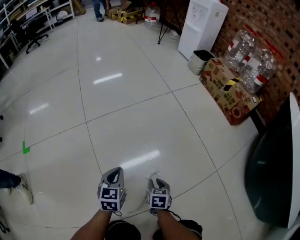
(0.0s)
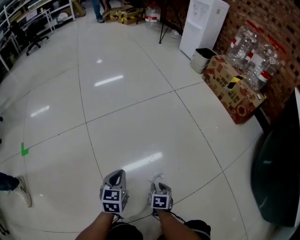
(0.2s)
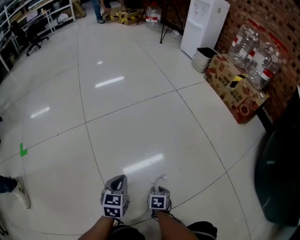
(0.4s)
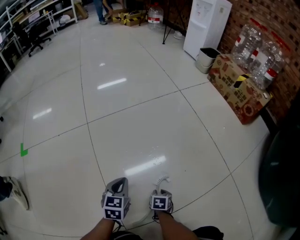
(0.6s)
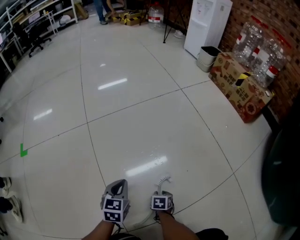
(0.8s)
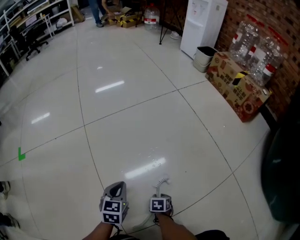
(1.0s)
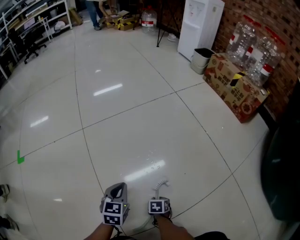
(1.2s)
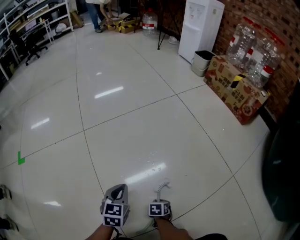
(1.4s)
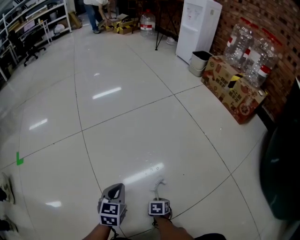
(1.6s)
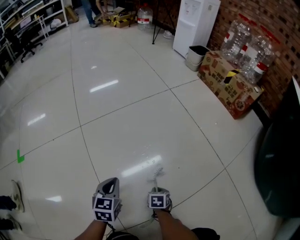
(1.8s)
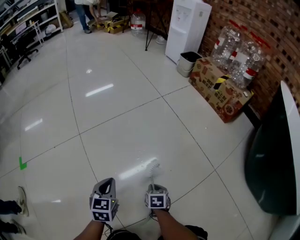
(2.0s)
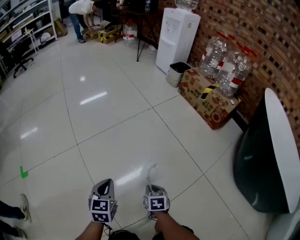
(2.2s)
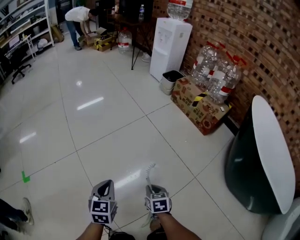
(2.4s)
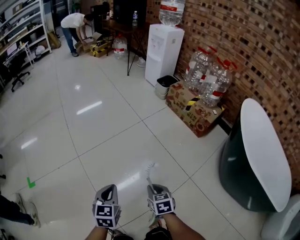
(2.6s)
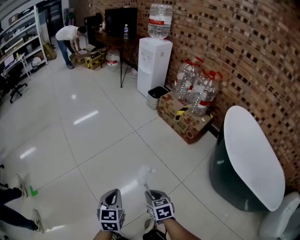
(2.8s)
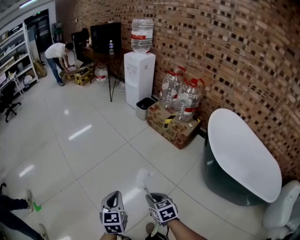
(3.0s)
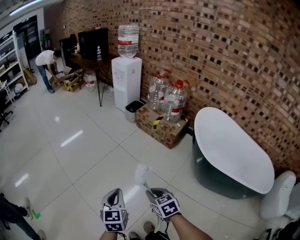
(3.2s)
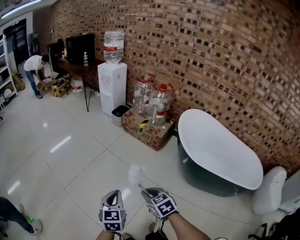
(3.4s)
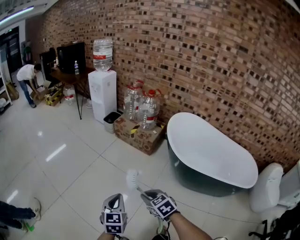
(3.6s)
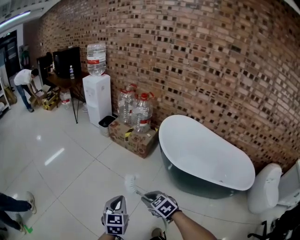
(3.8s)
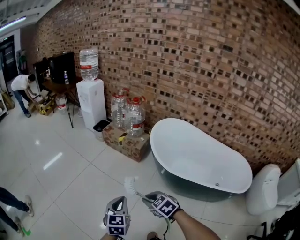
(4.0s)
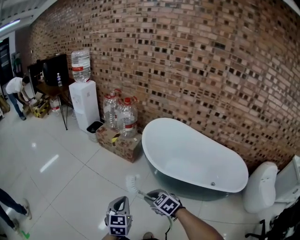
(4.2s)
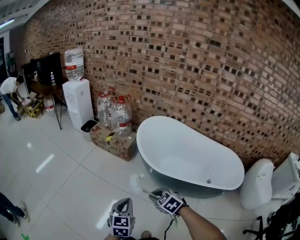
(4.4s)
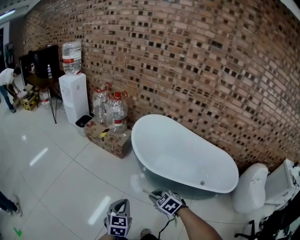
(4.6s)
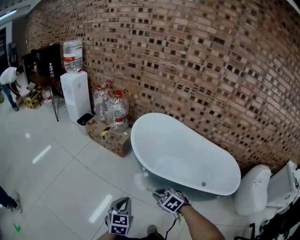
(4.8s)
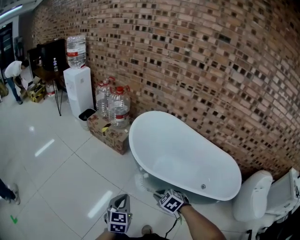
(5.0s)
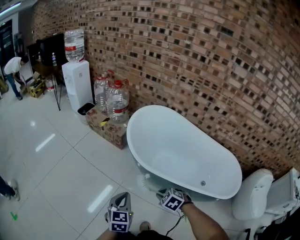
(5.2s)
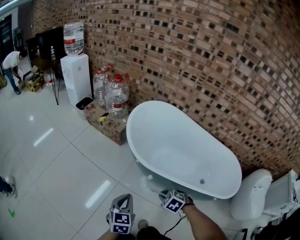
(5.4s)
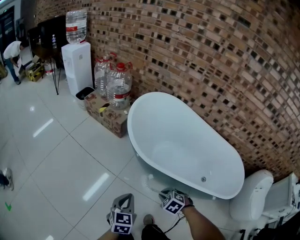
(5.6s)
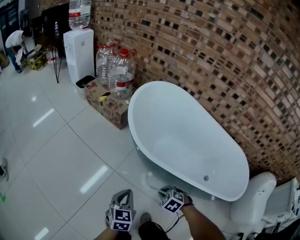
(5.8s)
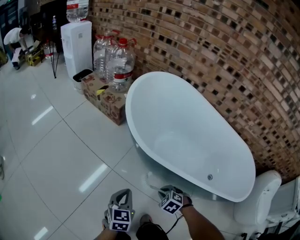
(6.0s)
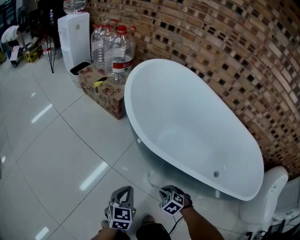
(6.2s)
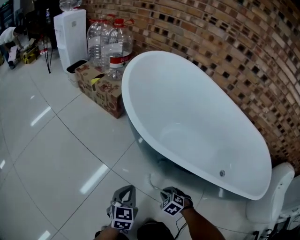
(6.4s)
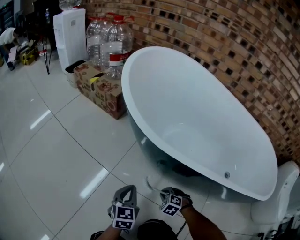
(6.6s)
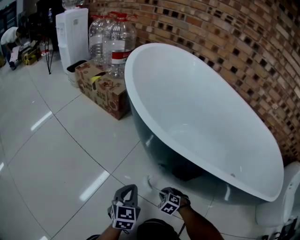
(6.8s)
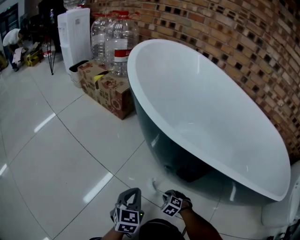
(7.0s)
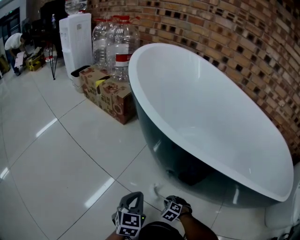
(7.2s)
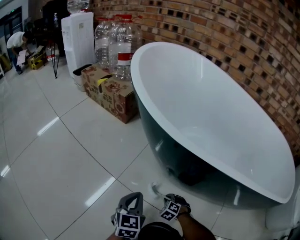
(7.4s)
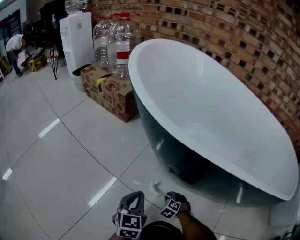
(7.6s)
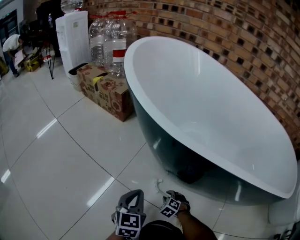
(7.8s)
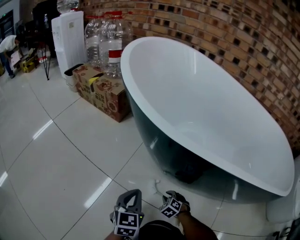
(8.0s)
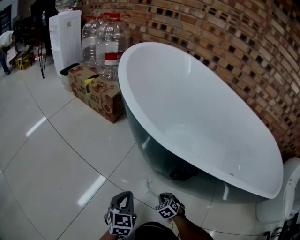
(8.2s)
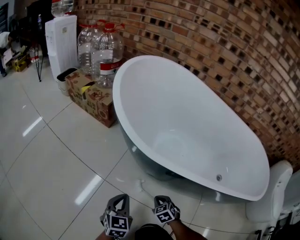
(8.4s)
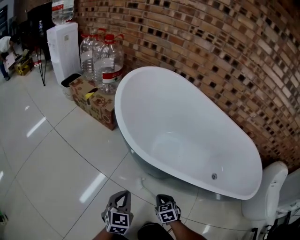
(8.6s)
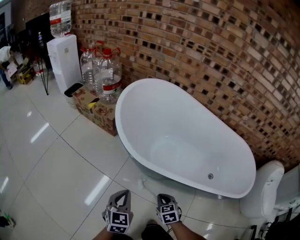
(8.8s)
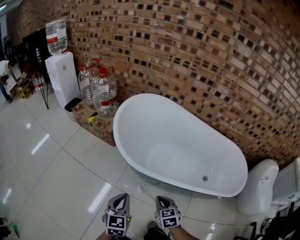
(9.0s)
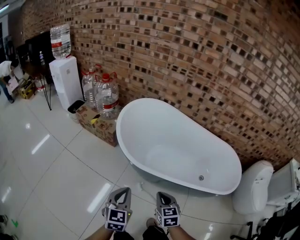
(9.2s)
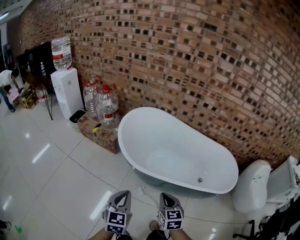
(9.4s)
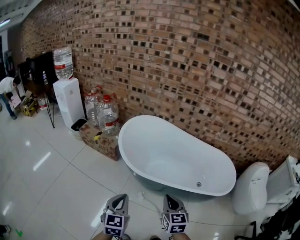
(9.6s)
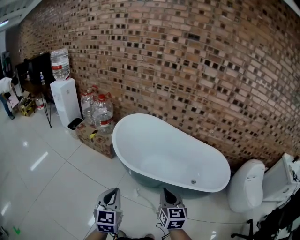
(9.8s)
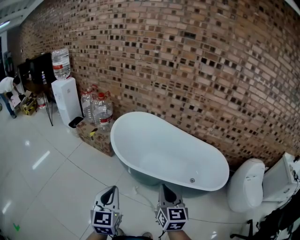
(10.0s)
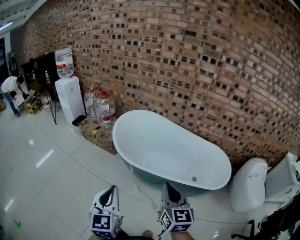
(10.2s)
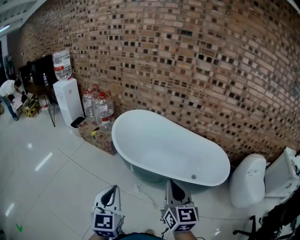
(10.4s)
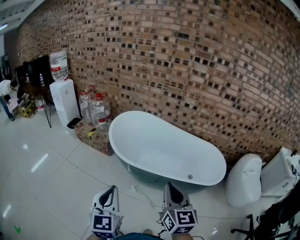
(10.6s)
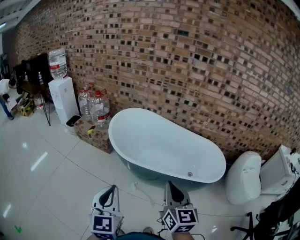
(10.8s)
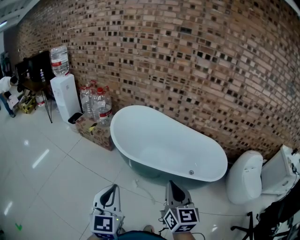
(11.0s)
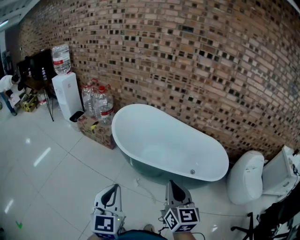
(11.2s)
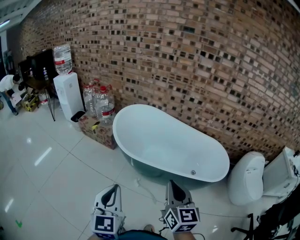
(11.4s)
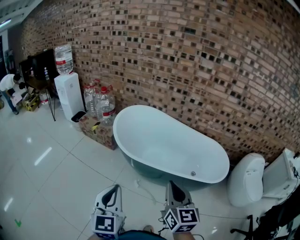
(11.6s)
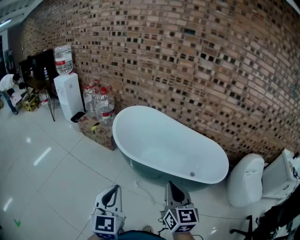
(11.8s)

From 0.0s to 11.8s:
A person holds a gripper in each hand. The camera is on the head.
From 0.0s to 1.4s: The right gripper heads downward, covering about 25 cm. Meanwhile the left gripper is displaced downward by some 15 cm.
From 1.4s to 3.0s: The two grippers go about 70 cm upward. The right gripper tilts its fingers about 30 degrees upward.
From 3.0s to 4.4s: The right gripper moves to the right and upward, approximately 40 cm, while the left gripper heads to the right, covering roughly 40 cm, and turns by about 30 degrees.
From 4.4s to 6.0s: The two grippers go about 40 cm downward and to the right. The right gripper swivels some 20 degrees.
From 6.0s to 7.4s: The grippers both shift downward by roughly 40 cm.
From 7.4s to 8.8s: Both grippers move upward, about 40 cm. The right gripper rolls clockwise, seen from behind, by roughly 50 degrees.
From 8.8s to 10.4s: The right gripper goes about 60 cm upward, and tilts its fingers some 40 degrees upward. The left gripper goes roughly 50 cm upward and backward, and swivels about 20 degrees.
From 10.4s to 11.8s: The grippers move only a little.

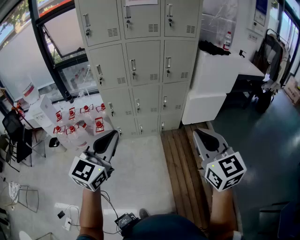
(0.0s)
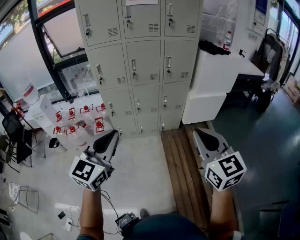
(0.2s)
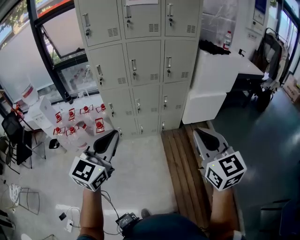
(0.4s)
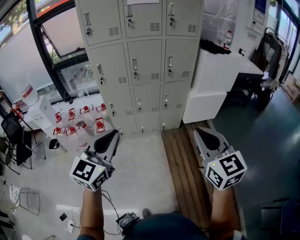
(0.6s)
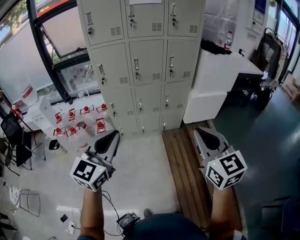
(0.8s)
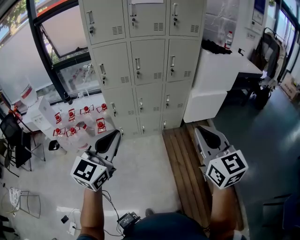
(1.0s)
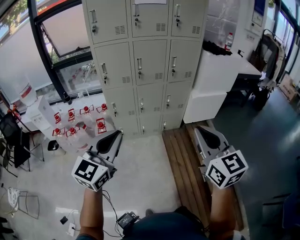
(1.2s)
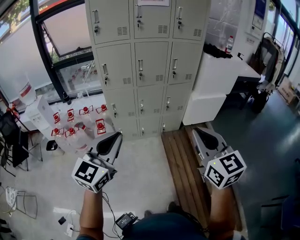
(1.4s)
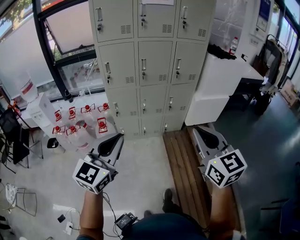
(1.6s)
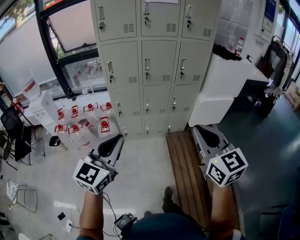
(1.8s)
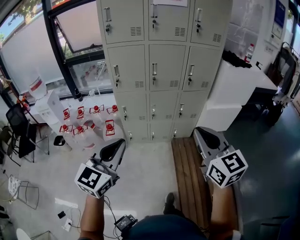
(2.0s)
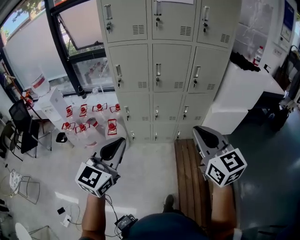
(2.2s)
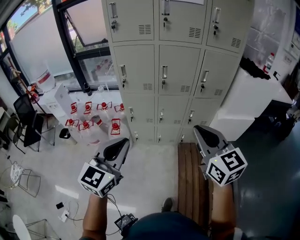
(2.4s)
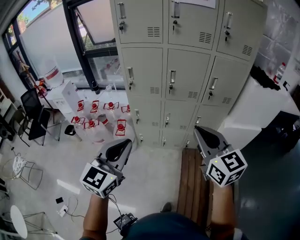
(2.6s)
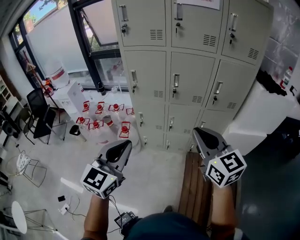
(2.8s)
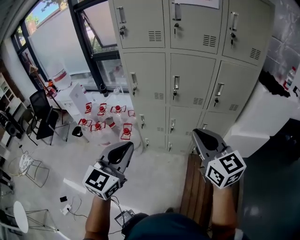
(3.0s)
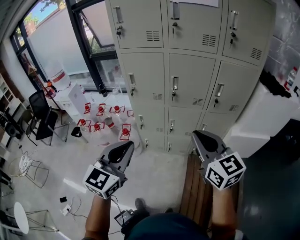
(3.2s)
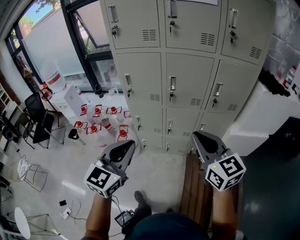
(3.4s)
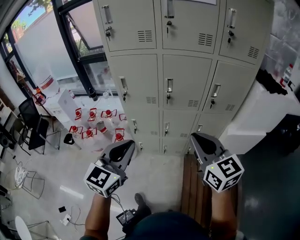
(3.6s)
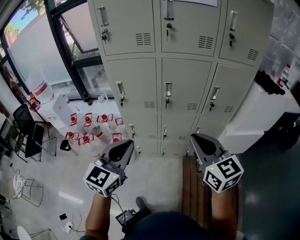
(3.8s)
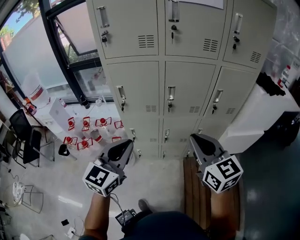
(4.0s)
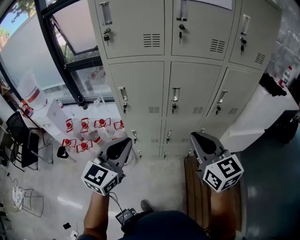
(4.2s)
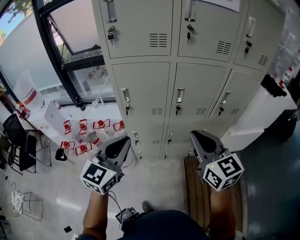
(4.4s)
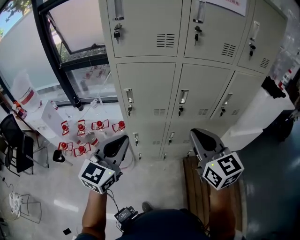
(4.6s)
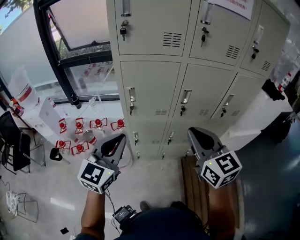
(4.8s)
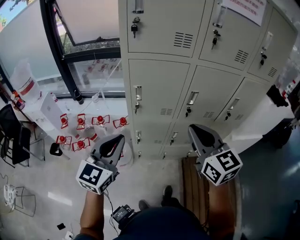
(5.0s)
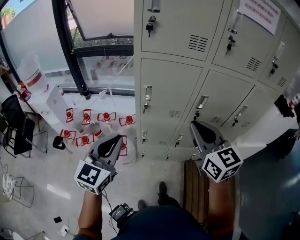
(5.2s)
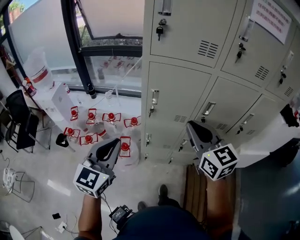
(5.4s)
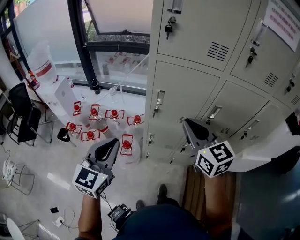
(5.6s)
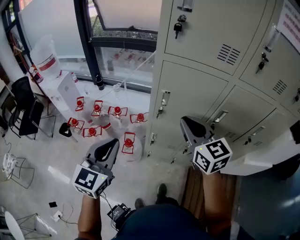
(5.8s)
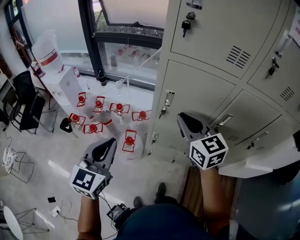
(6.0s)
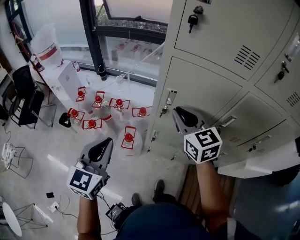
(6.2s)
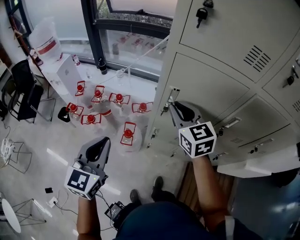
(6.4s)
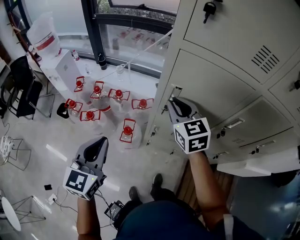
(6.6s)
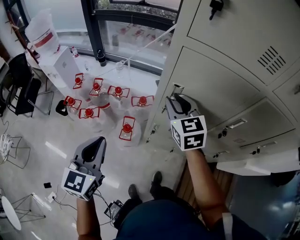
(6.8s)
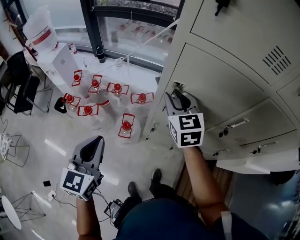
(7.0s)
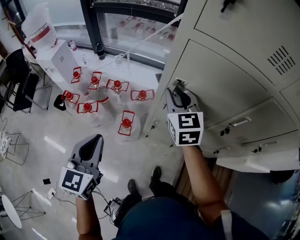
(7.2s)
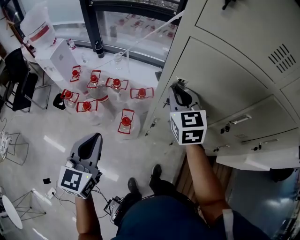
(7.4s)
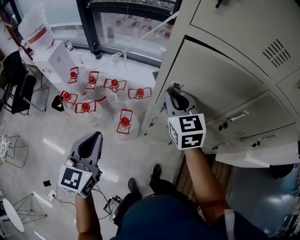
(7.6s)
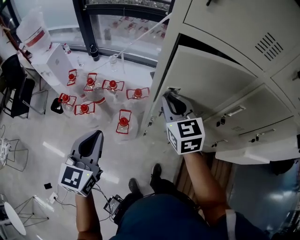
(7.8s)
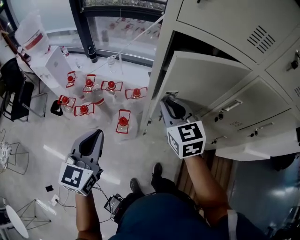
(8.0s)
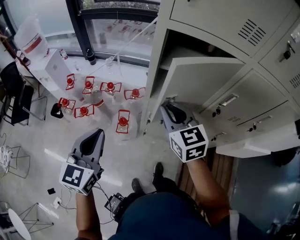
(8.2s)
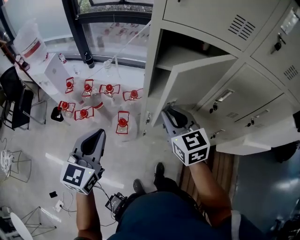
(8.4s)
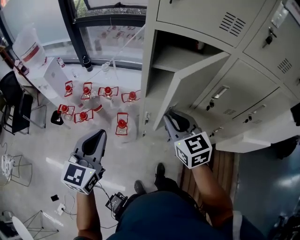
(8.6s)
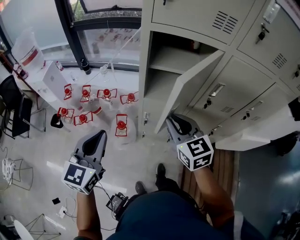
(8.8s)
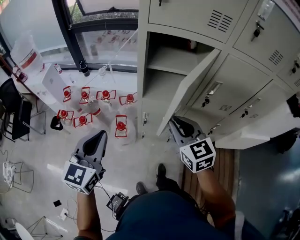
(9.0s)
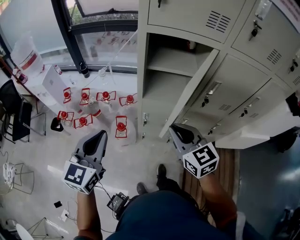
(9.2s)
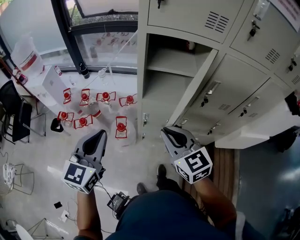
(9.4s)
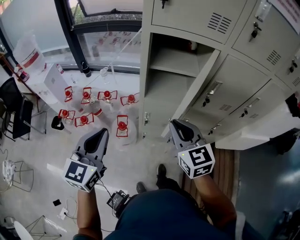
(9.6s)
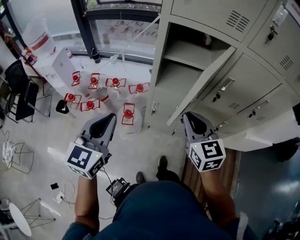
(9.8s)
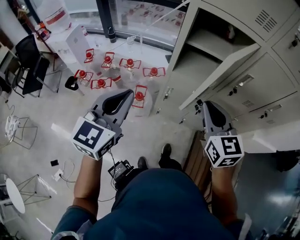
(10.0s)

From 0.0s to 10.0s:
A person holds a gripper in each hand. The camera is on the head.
From 0.0s to 1.4s: The grippers both shift to the left by approximately 10 cm.
From 1.4s to 2.8s: The grippers both shift forward by approximately 25 cm. The right gripper rotates some 20 degrees, while the left gripper rotates about 20 degrees.
From 2.8s to 4.2s: The right gripper travels forward and to the left by approximately 20 cm, while the left gripper goes approximately 25 cm forward.
From 4.2s to 5.8s: Both grippers move to the left and forward, roughly 30 cm.
From 5.8s to 7.2s: The left gripper moves downward, forward and to the left, about 15 cm. The right gripper moves forward and downward, approximately 20 cm.
From 7.2s to 8.6s: The right gripper goes about 20 cm backward, while the left gripper goes roughly 5 cm backward.
From 8.6s to 10.0s: The right gripper heads backward, covering roughly 10 cm.

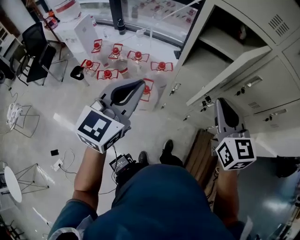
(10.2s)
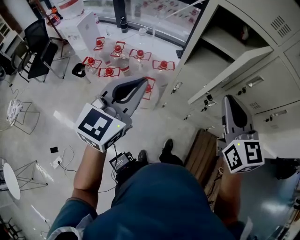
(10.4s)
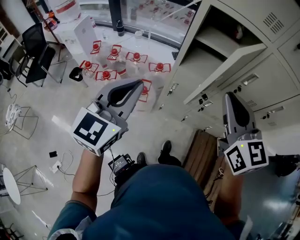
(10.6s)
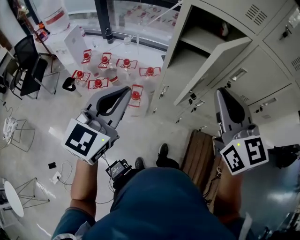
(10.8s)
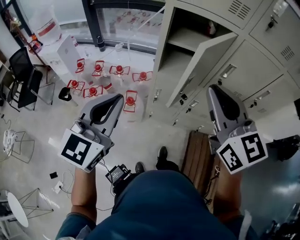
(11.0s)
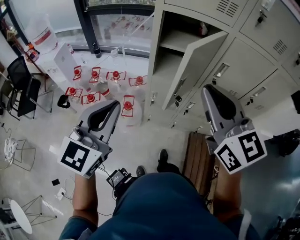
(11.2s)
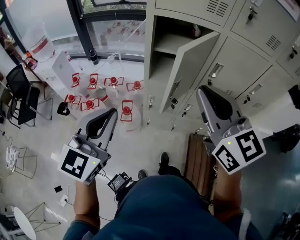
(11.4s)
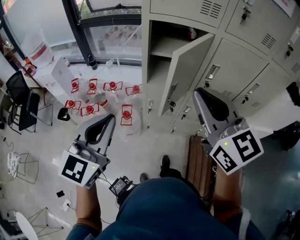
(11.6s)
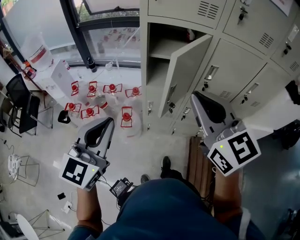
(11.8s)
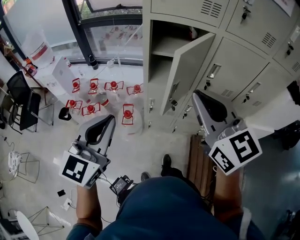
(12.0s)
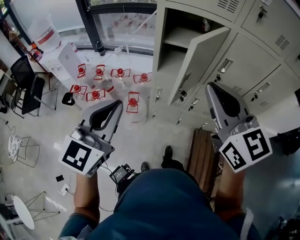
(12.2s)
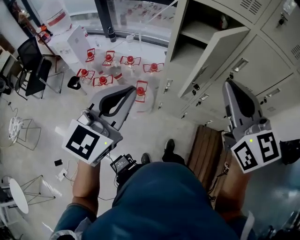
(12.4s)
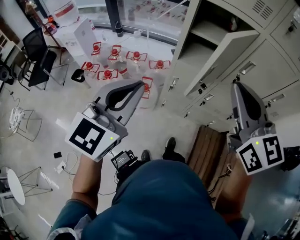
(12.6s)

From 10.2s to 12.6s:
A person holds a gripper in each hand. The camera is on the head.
From 10.2s to 11.4s: The right gripper shifts some 15 cm upward and backward, while the left gripper heads backward, to the right and upward, covering about 10 cm.
From 11.4s to 12.6s: The grippers make only small movements.
